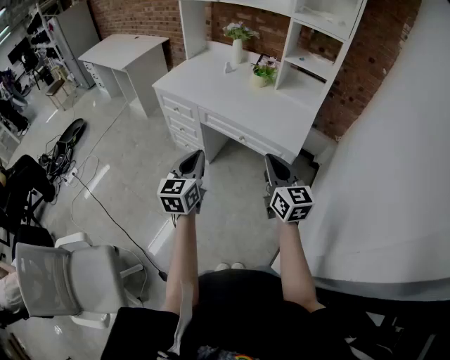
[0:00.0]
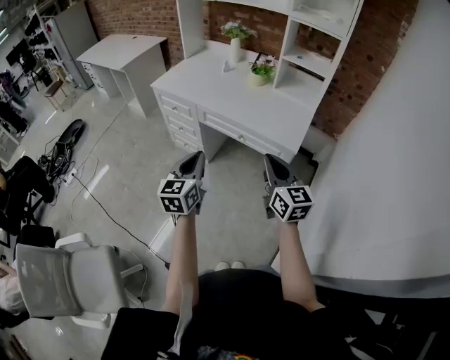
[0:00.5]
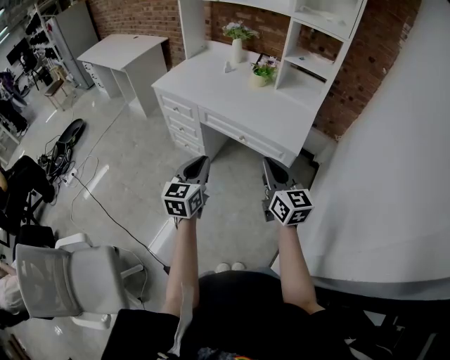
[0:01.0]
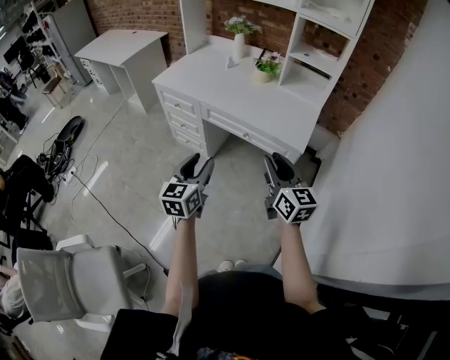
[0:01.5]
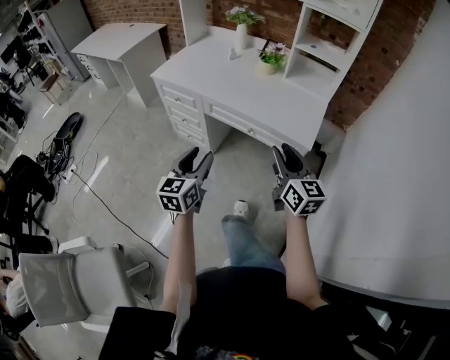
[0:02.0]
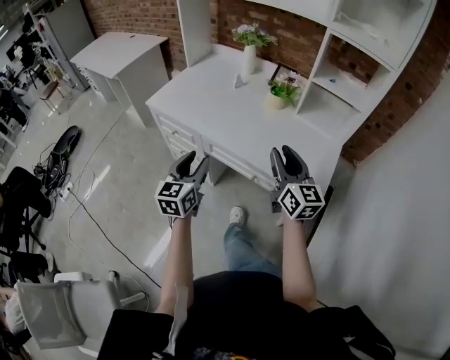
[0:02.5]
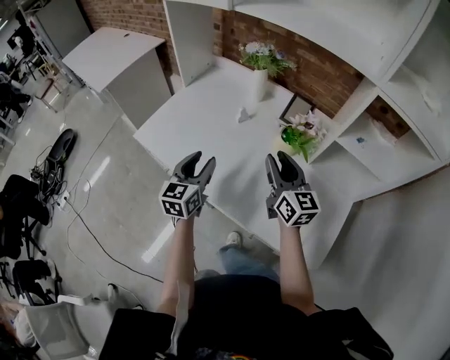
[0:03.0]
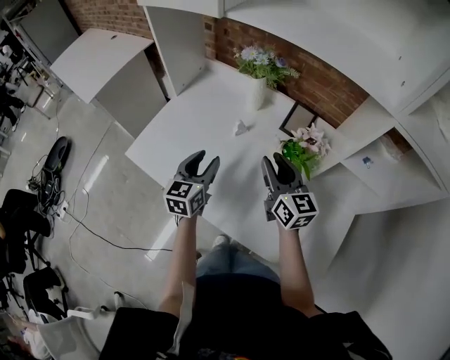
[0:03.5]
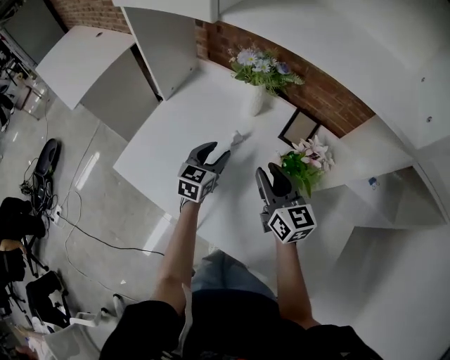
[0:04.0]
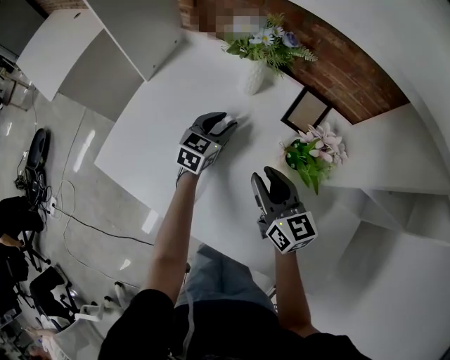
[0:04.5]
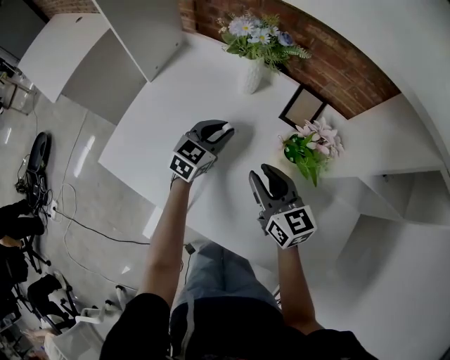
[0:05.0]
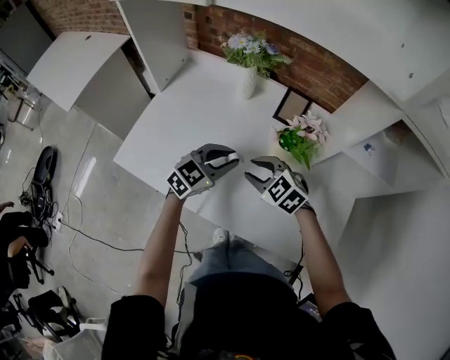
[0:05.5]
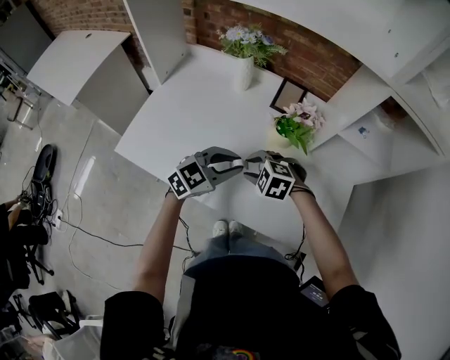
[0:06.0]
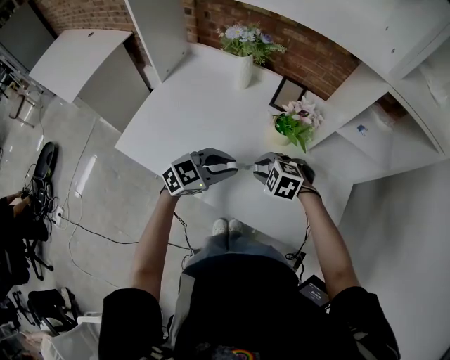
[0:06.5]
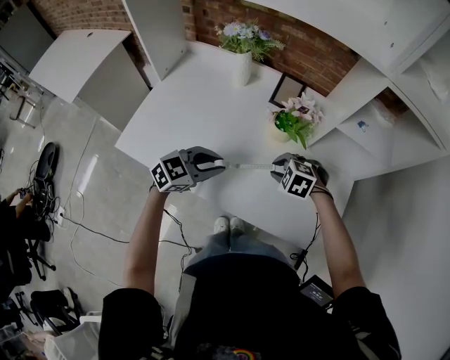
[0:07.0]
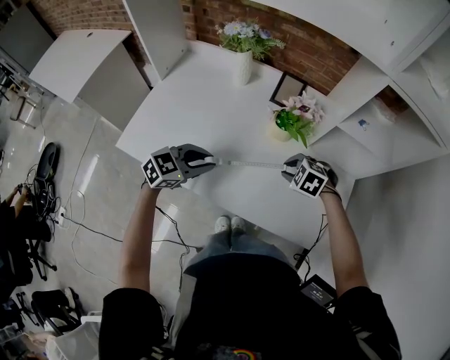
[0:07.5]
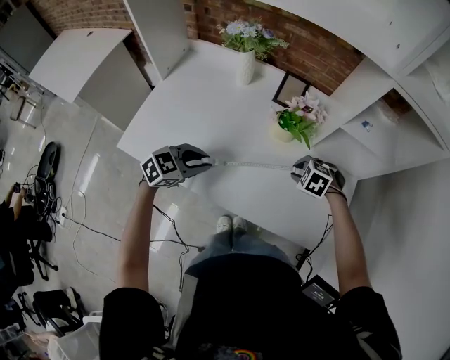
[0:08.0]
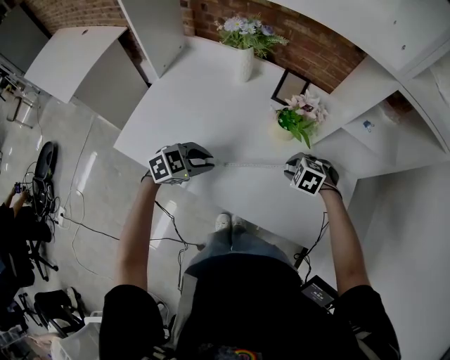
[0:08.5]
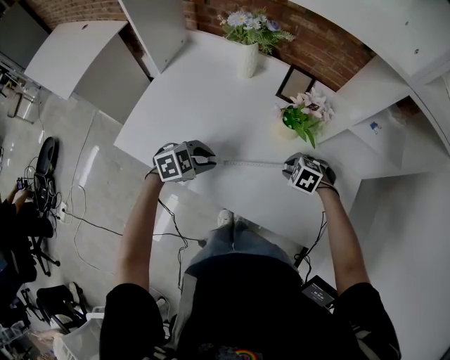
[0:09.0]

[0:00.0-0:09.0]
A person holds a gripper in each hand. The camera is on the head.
0:00.0 to 0:02.0: The left gripper shifts roughly 5 cm downward, and opens its fingers, while the right gripper is displaced forward by roughly 5 cm, and opens up.
0:02.0 to 0:04.5: The pair of grippers is taken forward, approximately 70 cm. The left gripper turns by about 30 degrees.
0:04.5 to 0:07.0: The right gripper changes place by about 15 cm, and points its fingers about 50 degrees further downward. The left gripper changes place by about 30 cm, and rotates approximately 40 degrees.
0:07.0 to 0:09.0: Both grippers travel together downward, roughly 5 cm. The left gripper turns by roughly 20 degrees.

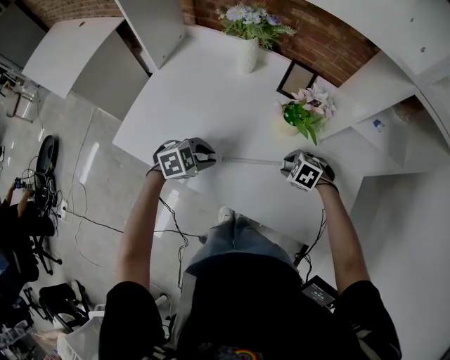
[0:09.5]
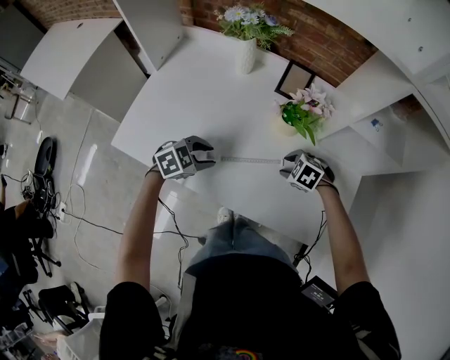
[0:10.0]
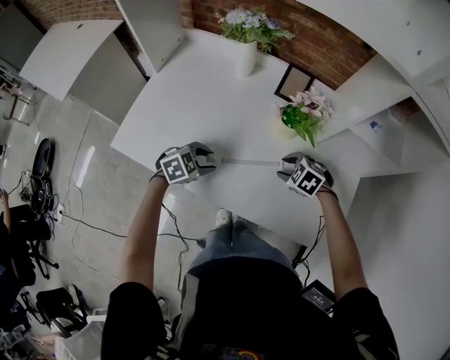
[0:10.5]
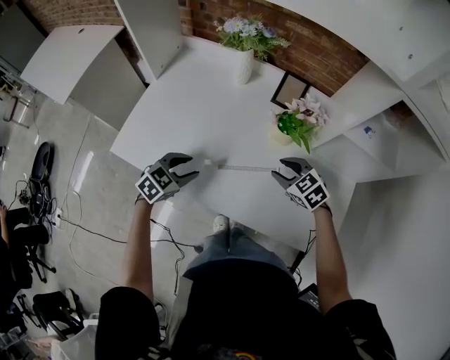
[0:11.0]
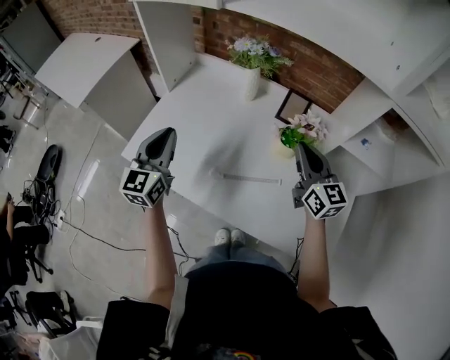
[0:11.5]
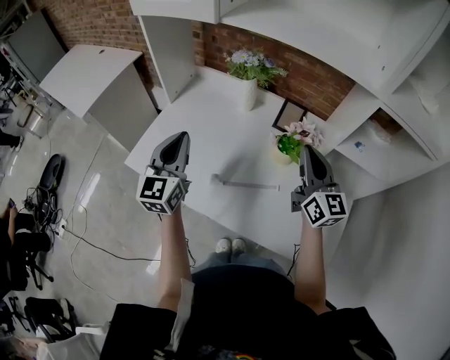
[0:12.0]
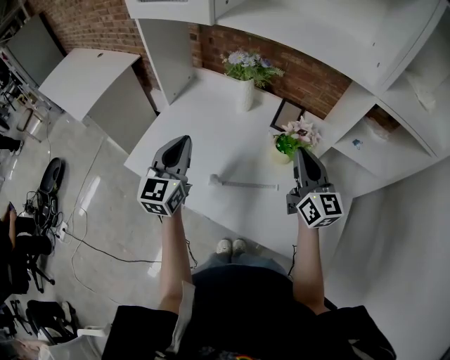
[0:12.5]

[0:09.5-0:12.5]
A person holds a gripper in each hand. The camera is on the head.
0:09.5 to 0:11.0: The left gripper changes place by about 5 cm, and swivels approximately 20 degrees. Meanwhile the right gripper heads upward, covering approximately 10 cm, and swivels about 30 degrees.
0:11.0 to 0:12.5: The two grippers go some 25 cm upward. The left gripper tilts its fingers approximately 40 degrees upward, and closes; the right gripper points its fingers approximately 50 degrees further upward, and closes.

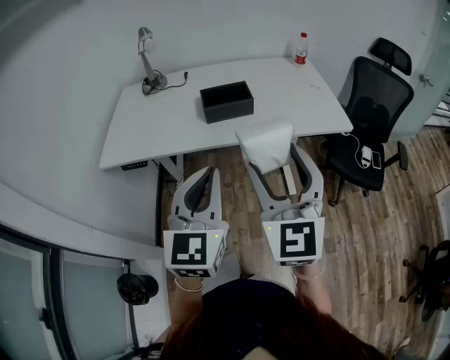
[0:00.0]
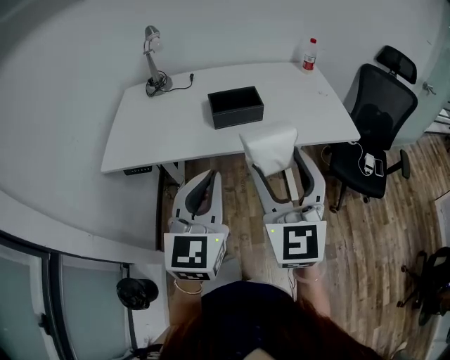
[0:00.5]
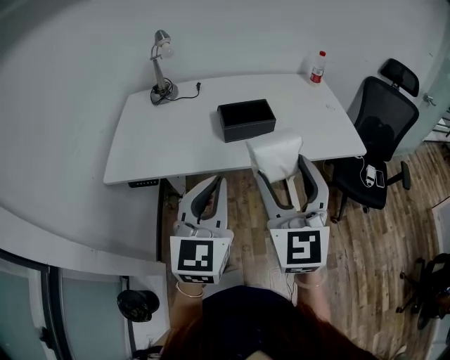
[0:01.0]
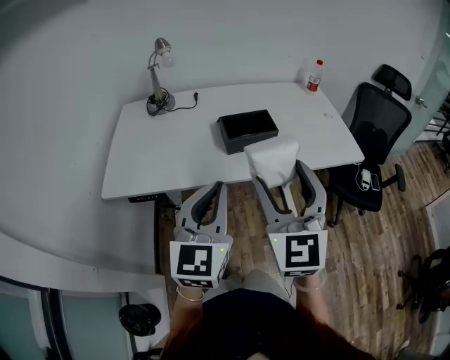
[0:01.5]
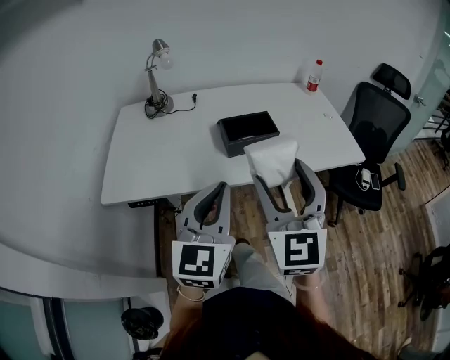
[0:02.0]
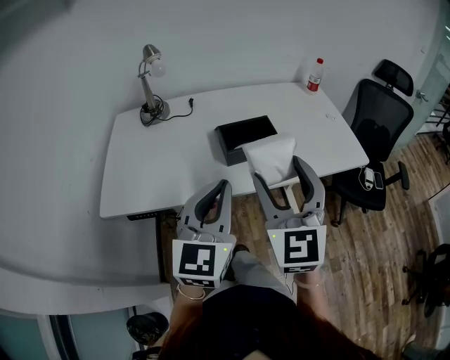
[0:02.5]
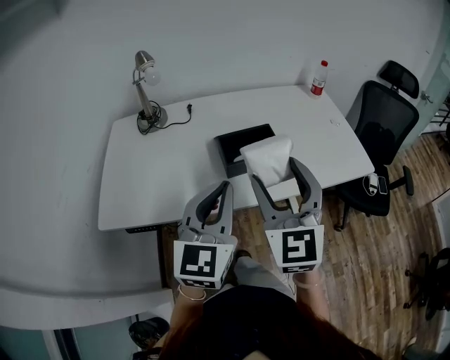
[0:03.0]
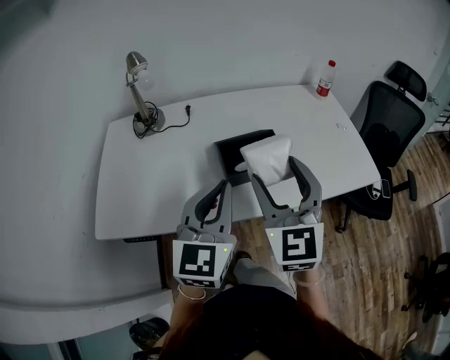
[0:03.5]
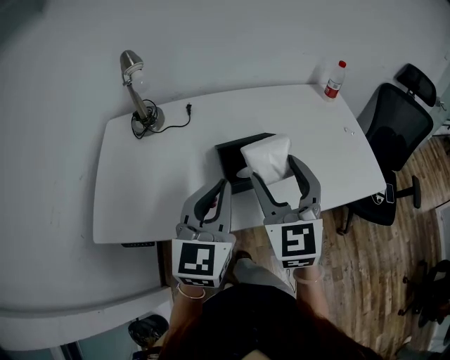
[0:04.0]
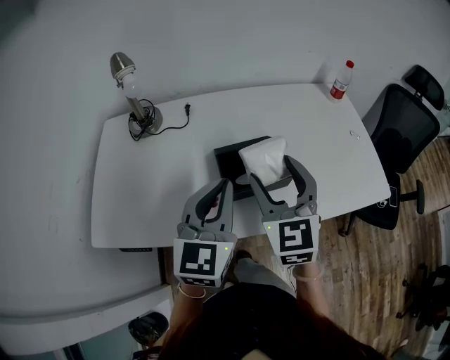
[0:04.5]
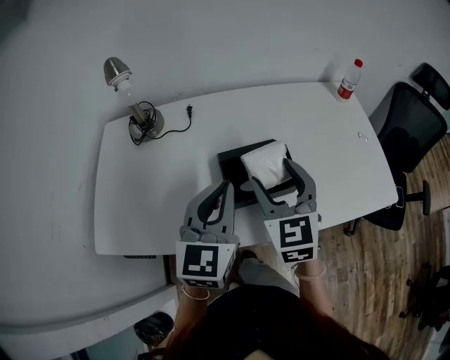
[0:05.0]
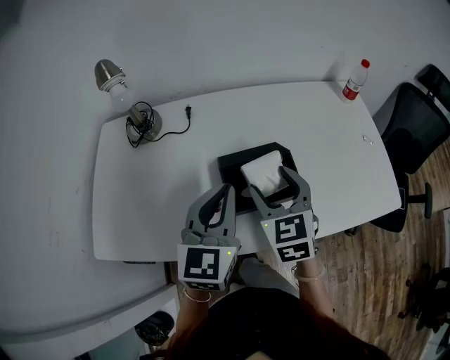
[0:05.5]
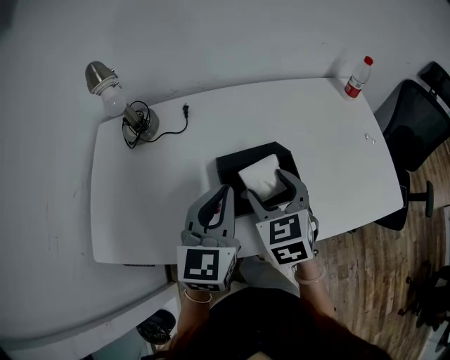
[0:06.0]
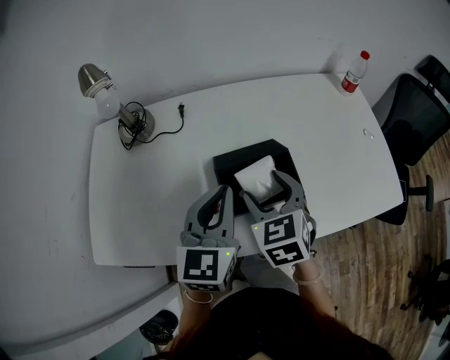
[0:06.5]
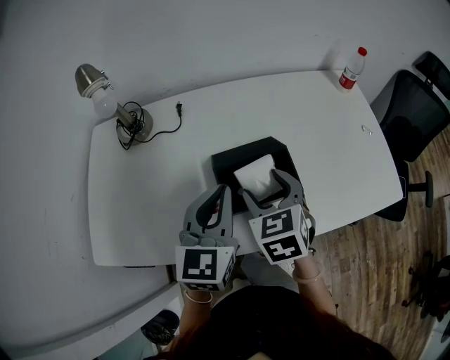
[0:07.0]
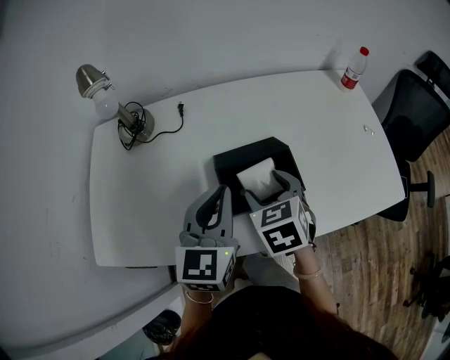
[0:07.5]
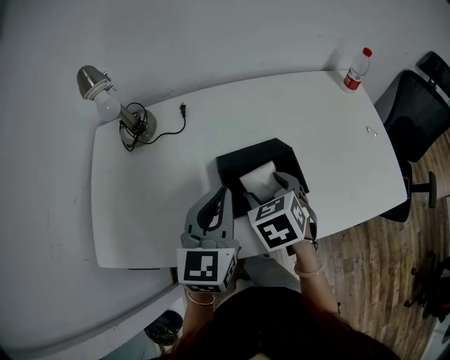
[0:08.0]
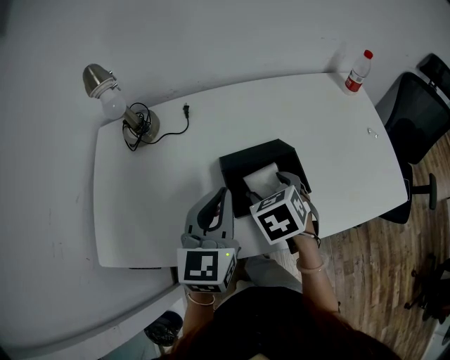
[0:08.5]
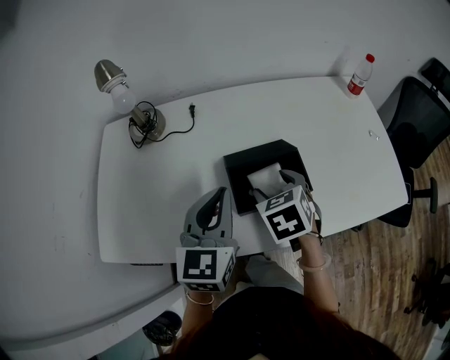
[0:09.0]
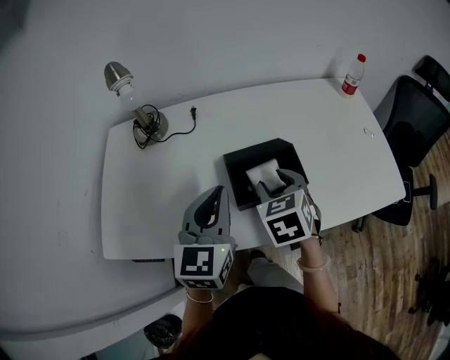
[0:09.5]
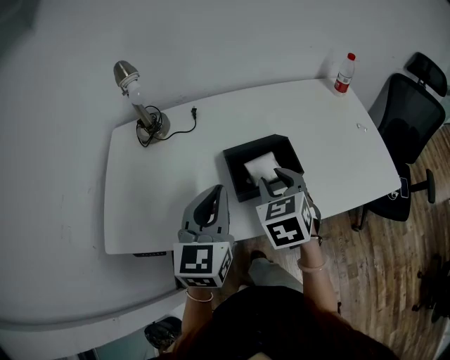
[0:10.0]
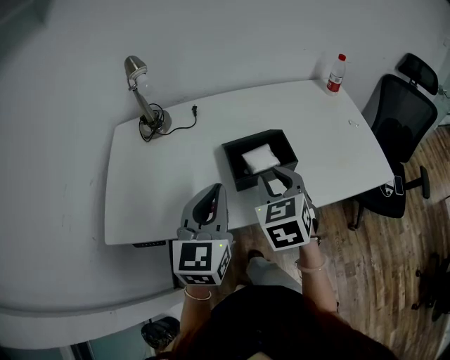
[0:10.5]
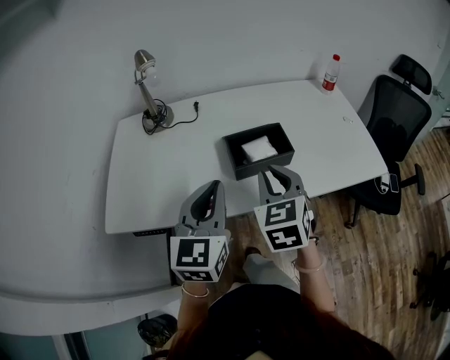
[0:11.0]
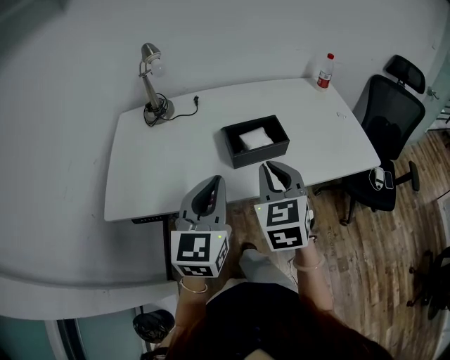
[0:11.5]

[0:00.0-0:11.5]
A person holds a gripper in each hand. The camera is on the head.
0:00.0 to 0:02.0: The two grippers go some 15 cm to the left and forward.
0:02.0 to 0:04.0: Both grippers move forward, roughly 20 cm.
0:04.0 to 0:06.0: The right gripper heads downward and forward, covering roughly 15 cm, and swivels approximately 30 degrees. Meanwhile the left gripper travels forward and downward by some 10 cm.
0:06.0 to 0:07.5: The grippers move only a little.
0:07.5 to 0:09.5: The grippers make only small movements.
0:09.5 to 0:11.5: The left gripper heads backward, covering roughly 15 cm. The right gripper moves backward and upward, approximately 20 cm, rotates about 20 degrees, and closes.

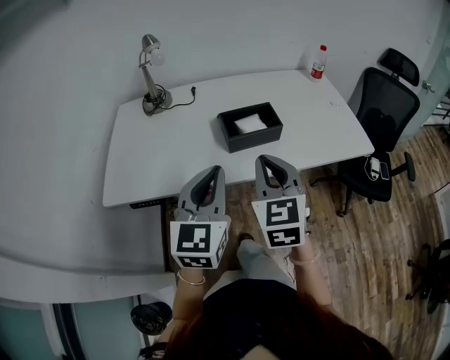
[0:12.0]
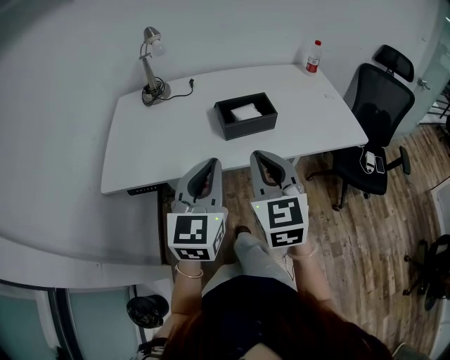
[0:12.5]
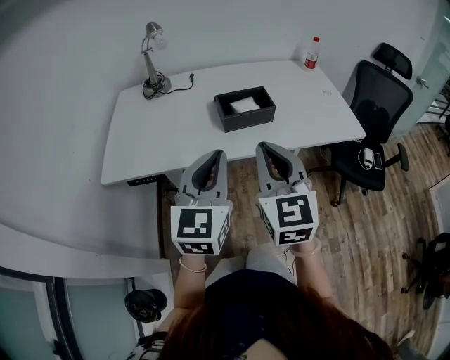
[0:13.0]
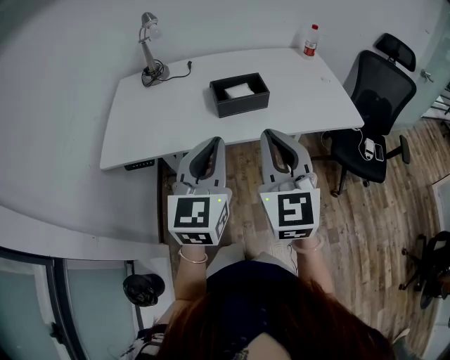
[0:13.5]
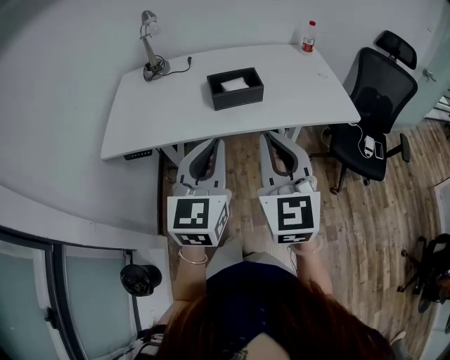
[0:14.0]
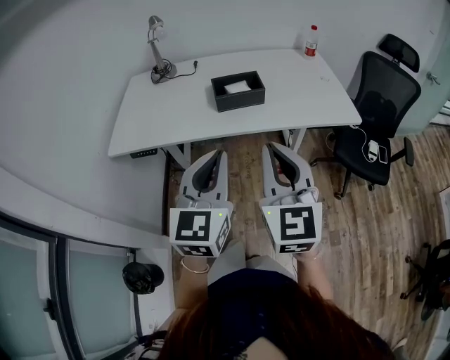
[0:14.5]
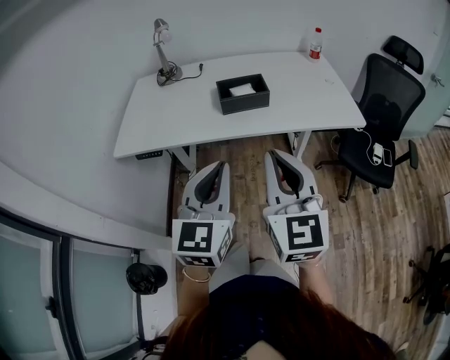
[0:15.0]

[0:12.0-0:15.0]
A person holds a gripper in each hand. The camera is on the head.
0:12.0 to 0:13.5: The right gripper shifts approximately 15 cm backward, upward and to the right, while the left gripper goes about 10 cm backward.
0:13.5 to 0:15.0: The grippers both shift backward by approximately 10 cm.
